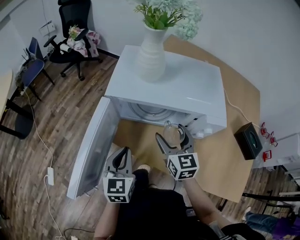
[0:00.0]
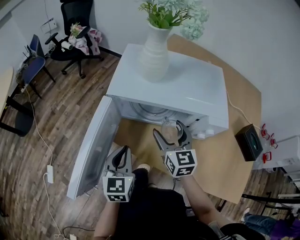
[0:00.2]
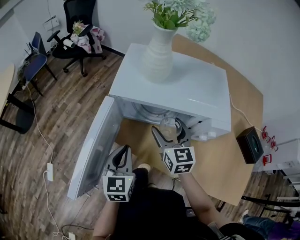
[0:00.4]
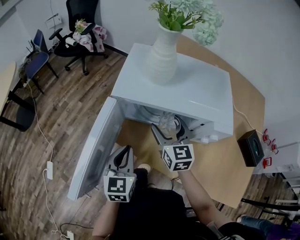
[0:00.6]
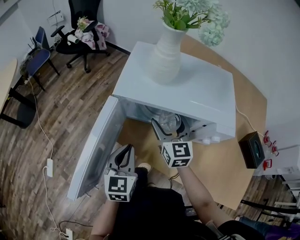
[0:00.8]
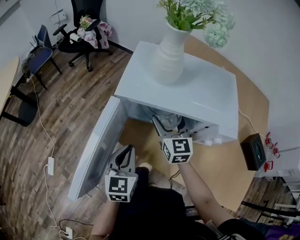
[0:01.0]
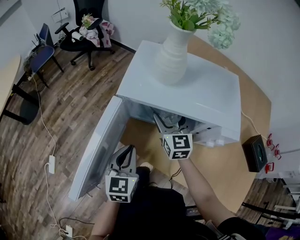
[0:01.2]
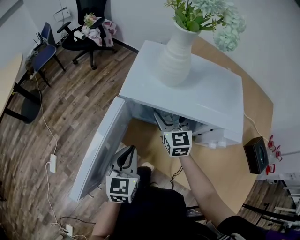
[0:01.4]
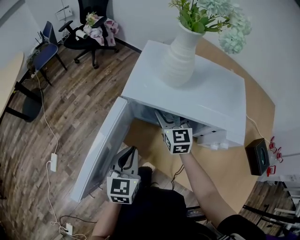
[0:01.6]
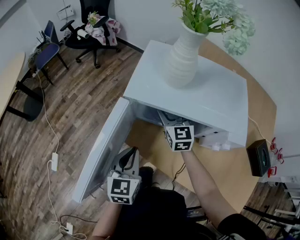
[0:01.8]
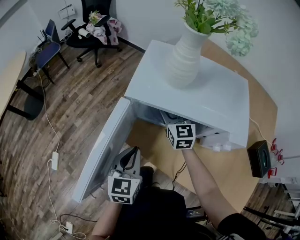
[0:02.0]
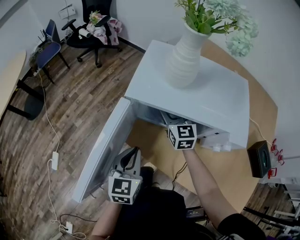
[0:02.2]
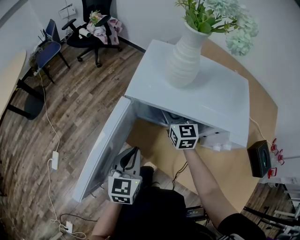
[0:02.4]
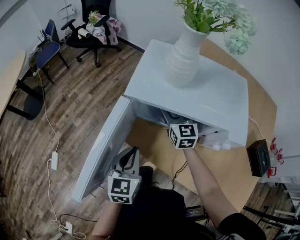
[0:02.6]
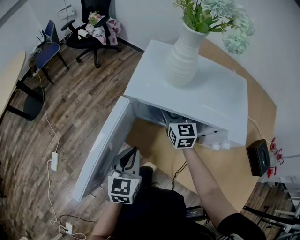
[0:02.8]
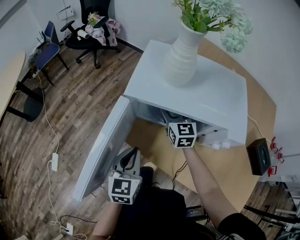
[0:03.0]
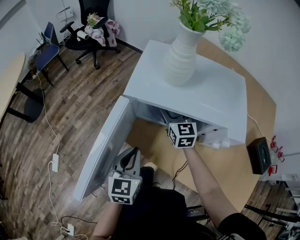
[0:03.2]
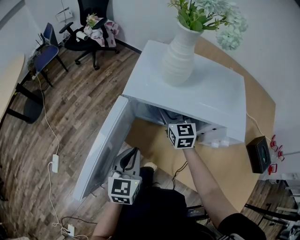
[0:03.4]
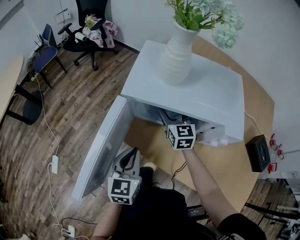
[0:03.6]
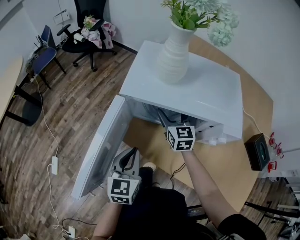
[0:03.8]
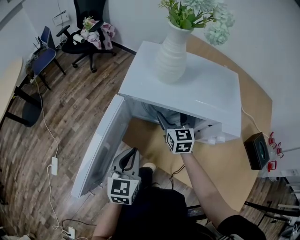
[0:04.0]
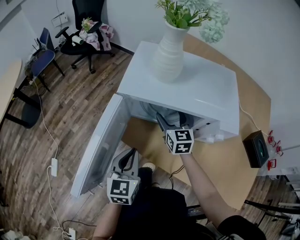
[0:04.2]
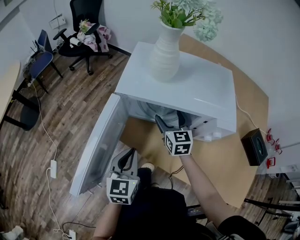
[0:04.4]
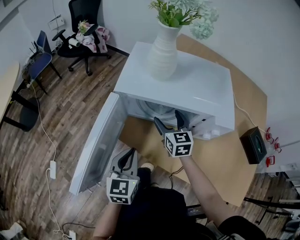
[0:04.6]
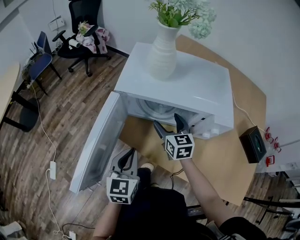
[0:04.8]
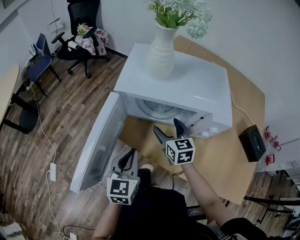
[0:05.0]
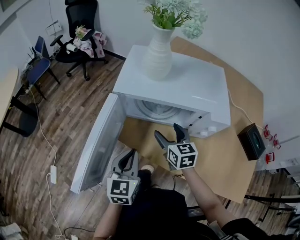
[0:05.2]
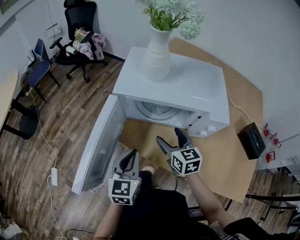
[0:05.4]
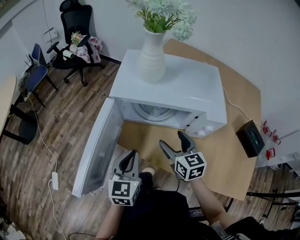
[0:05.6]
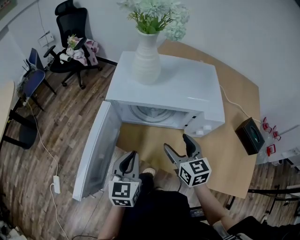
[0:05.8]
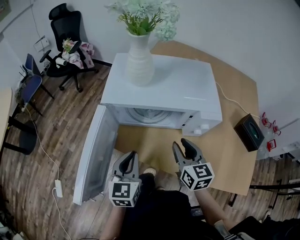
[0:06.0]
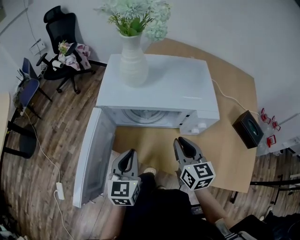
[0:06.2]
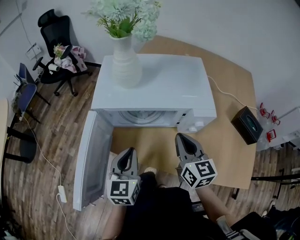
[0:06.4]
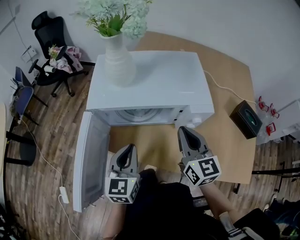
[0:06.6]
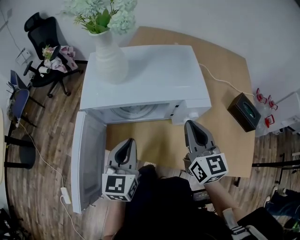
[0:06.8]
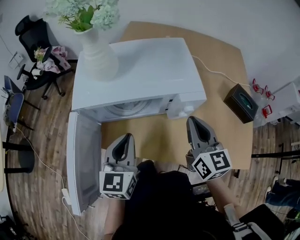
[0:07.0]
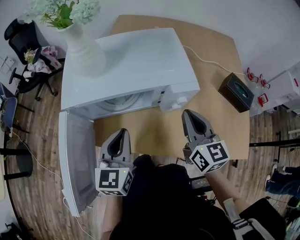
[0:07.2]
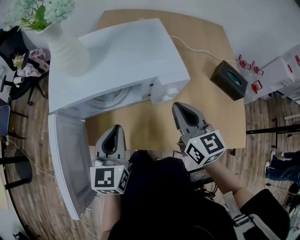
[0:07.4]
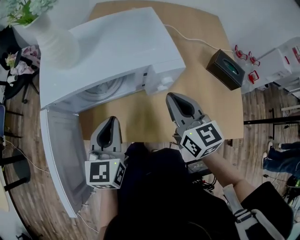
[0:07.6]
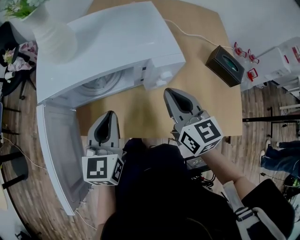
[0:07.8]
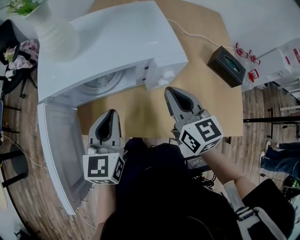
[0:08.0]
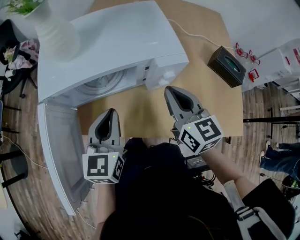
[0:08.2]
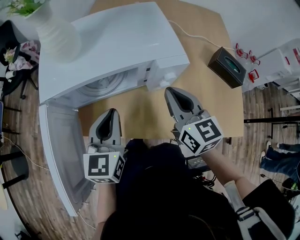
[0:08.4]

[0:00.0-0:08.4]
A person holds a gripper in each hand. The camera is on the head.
0:00.0 to 0:01.4: The right gripper goes roughly 15 cm forward and to the left.
0:01.4 to 0:02.8: The grippers stay close to where they were, moving slightly.
0:02.8 to 0:04.2: The right gripper heads backward, covering some 5 cm.
0:04.2 to 0:05.6: The right gripper is displaced backward by approximately 15 cm.
0:05.6 to 0:07.0: The right gripper moves to the right and upward, approximately 15 cm, turns by roughly 30 degrees, and closes its fingers, while the left gripper is displaced to the right and forward by roughly 10 cm.
0:07.0 to 0:08.4: There are only small adjustments of the grippers.

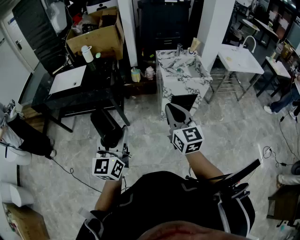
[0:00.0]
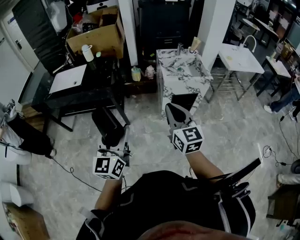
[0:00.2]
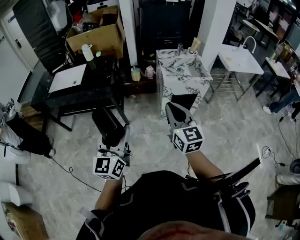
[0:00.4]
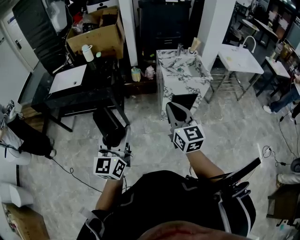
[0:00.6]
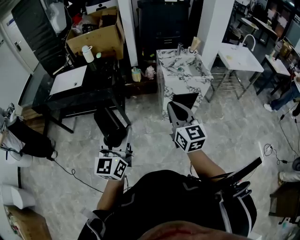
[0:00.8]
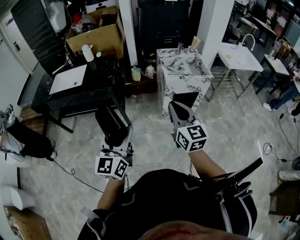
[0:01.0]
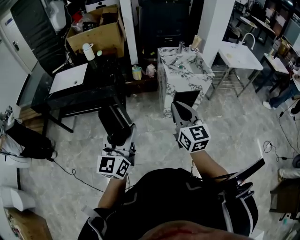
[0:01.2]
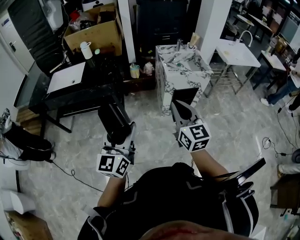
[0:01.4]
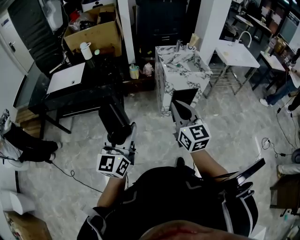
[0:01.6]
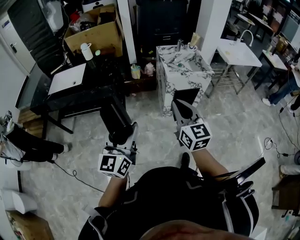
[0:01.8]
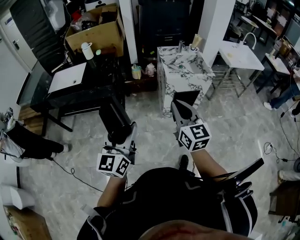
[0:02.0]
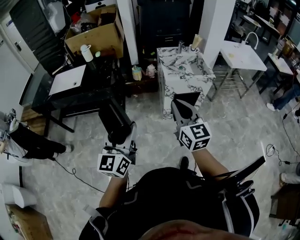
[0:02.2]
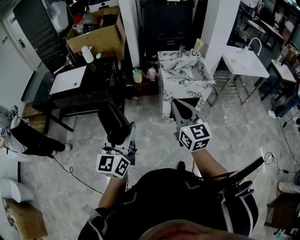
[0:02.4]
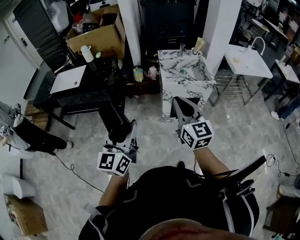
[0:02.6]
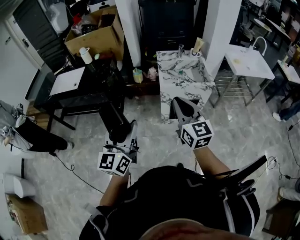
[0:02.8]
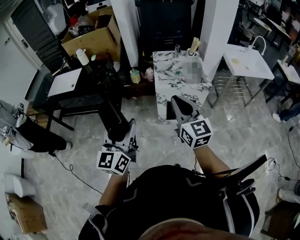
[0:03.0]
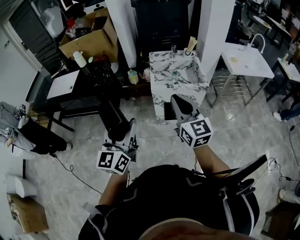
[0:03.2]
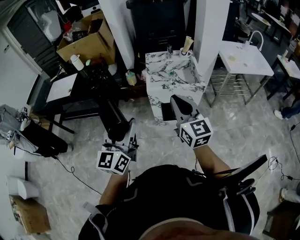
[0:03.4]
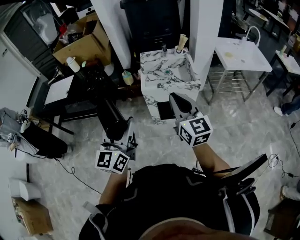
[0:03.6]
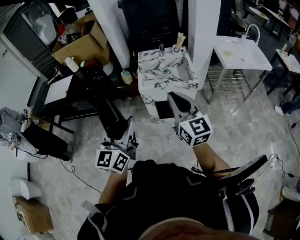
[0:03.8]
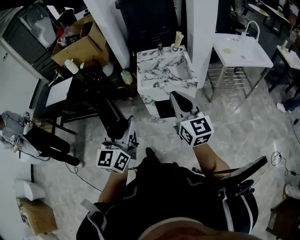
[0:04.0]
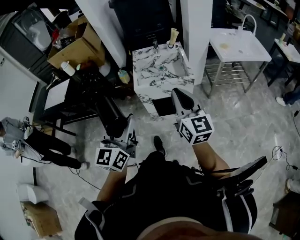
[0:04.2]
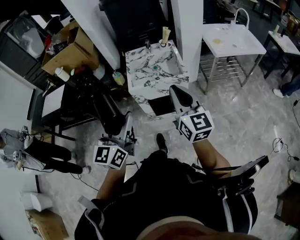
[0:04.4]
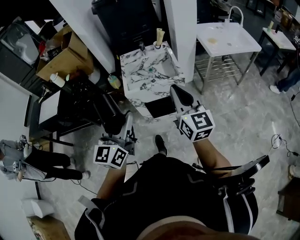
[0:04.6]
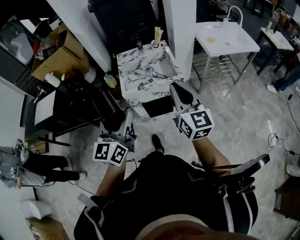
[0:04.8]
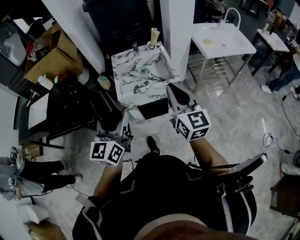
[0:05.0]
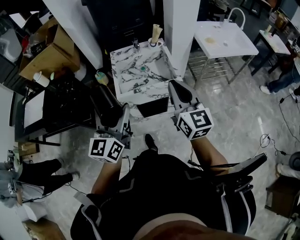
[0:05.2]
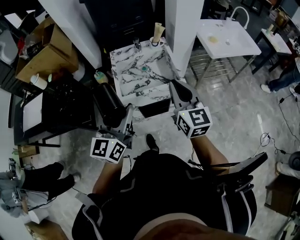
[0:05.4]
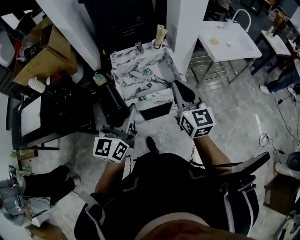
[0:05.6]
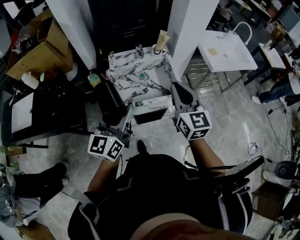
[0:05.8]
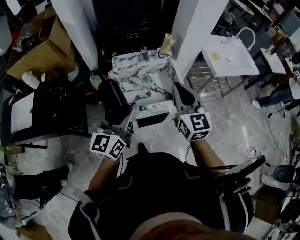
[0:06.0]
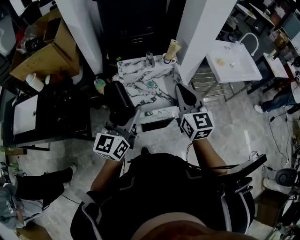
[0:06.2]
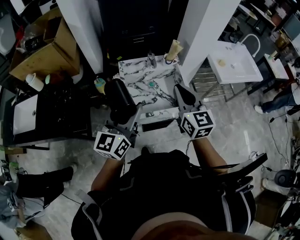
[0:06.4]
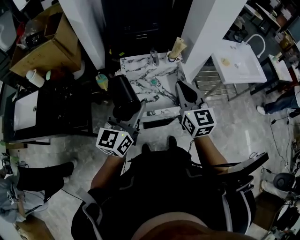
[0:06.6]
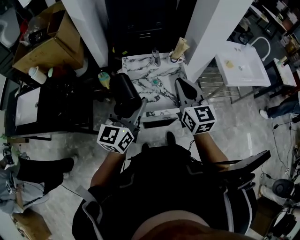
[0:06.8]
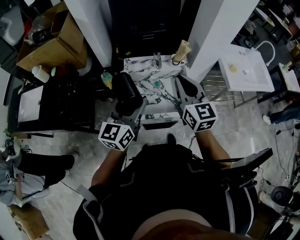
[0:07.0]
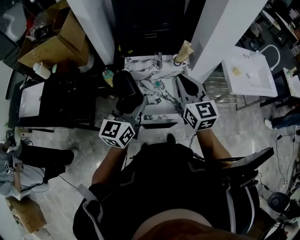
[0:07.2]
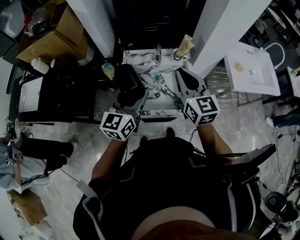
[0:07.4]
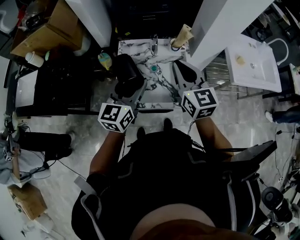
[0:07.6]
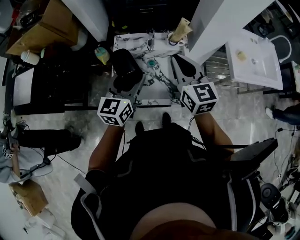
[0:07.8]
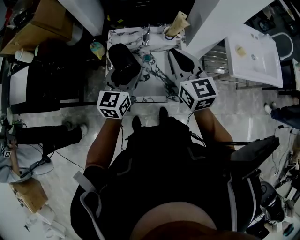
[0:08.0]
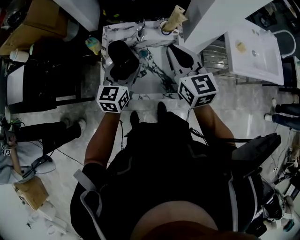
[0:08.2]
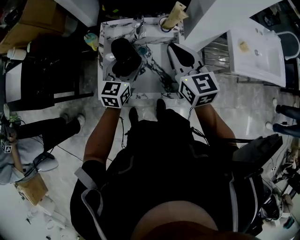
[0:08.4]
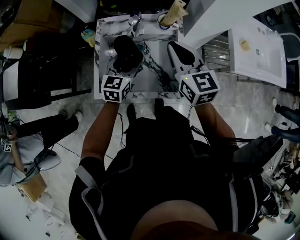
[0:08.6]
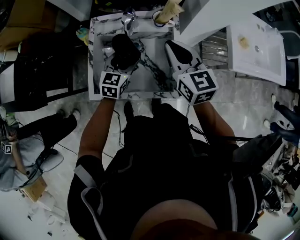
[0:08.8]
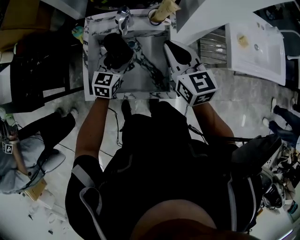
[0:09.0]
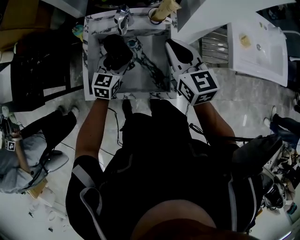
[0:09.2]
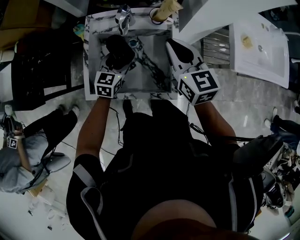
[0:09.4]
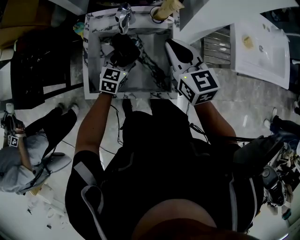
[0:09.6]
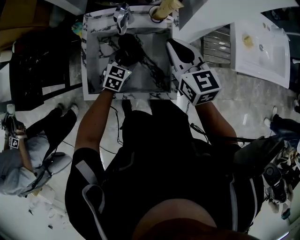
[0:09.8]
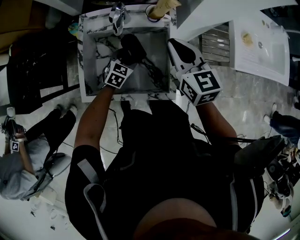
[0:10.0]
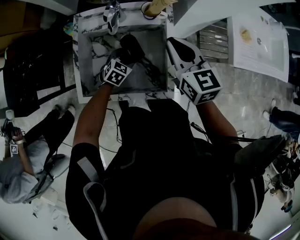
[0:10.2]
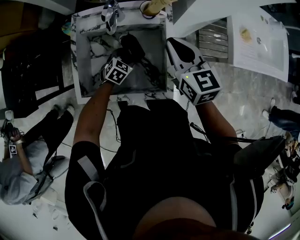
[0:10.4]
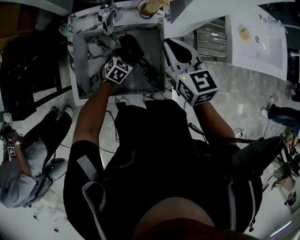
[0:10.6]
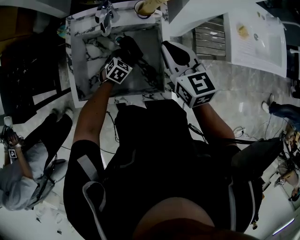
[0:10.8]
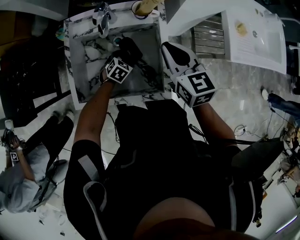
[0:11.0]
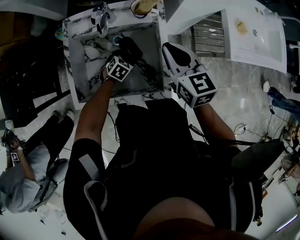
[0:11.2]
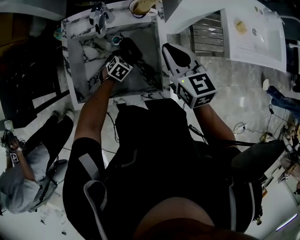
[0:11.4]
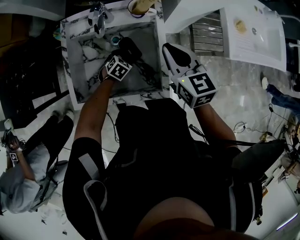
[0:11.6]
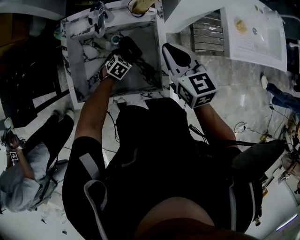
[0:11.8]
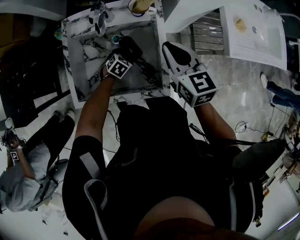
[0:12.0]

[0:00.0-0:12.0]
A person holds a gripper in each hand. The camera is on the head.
0:00.0 to 0:01.6: The grippers make only small movements.
0:01.6 to 0:03.0: The two grippers go some 20 cm to the right and forward.
0:03.0 to 0:04.4: The grippers both shift to the right by about 20 cm.
0:04.4 to 0:06.0: Both grippers travel together forward, roughly 25 cm.
0:06.0 to 0:07.6: The right gripper is displaced forward by some 15 cm. The left gripper travels forward and to the right by about 15 cm.
0:07.6 to 0:09.0: The left gripper travels downward and forward by about 25 cm, and rotates about 20 degrees. The right gripper goes some 15 cm downward, to the right and forward.
0:09.0 to 0:10.4: The left gripper heads downward, covering about 15 cm, and swivels approximately 30 degrees. The right gripper shifts about 5 cm downward.
0:10.4 to 0:12.0: The left gripper shifts some 5 cm downward.

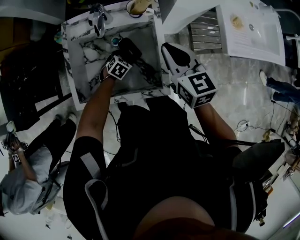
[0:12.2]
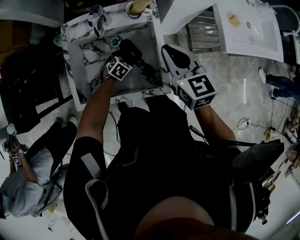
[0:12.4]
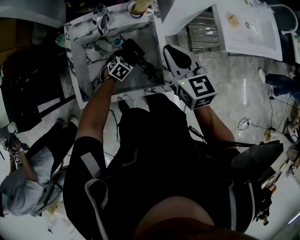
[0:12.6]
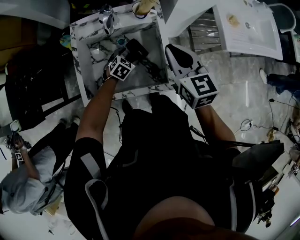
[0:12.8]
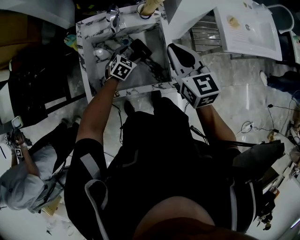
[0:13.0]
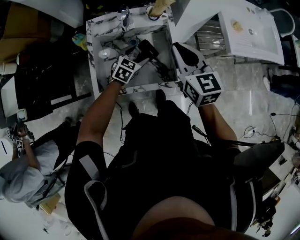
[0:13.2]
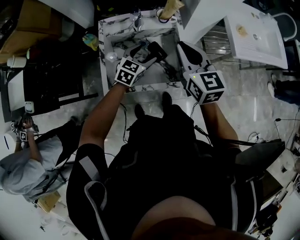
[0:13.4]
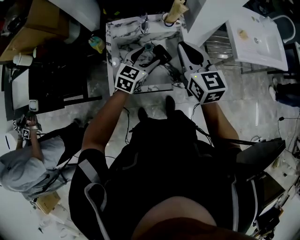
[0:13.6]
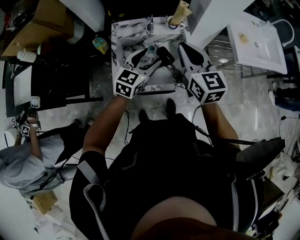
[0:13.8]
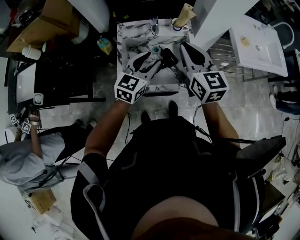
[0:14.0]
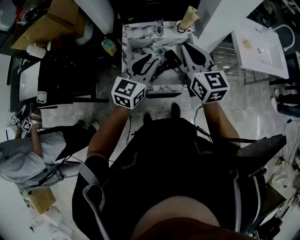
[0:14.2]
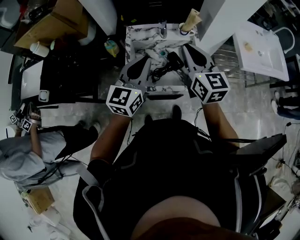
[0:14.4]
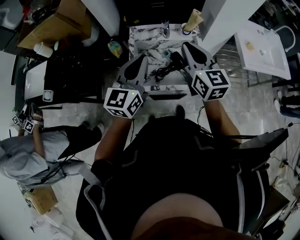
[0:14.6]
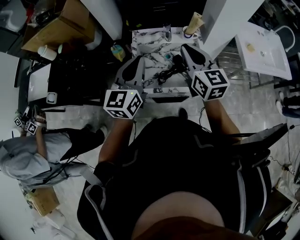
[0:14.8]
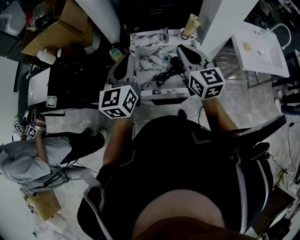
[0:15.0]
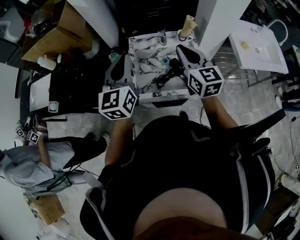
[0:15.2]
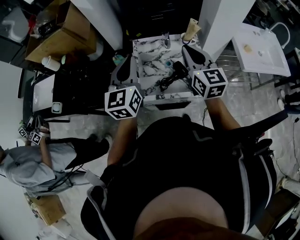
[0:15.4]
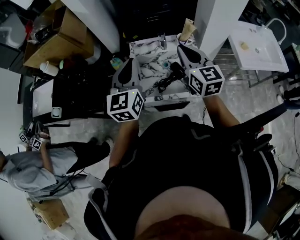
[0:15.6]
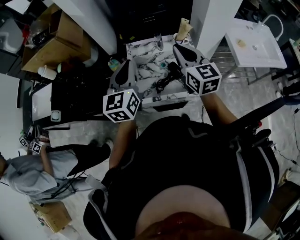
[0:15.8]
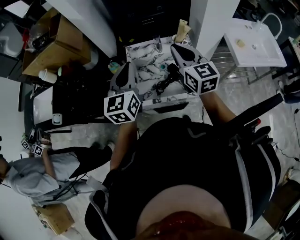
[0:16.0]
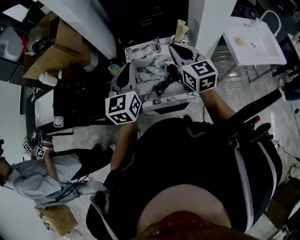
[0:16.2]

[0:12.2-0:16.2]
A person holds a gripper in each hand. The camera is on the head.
0:12.2 to 0:13.6: The right gripper heads upward, backward and to the left, covering about 15 cm. The left gripper goes some 30 cm upward, and points its fingers some 40 degrees further upward.
0:13.6 to 0:14.8: The left gripper goes approximately 25 cm upward, to the left and backward, changes its angle by roughly 30 degrees, and closes, while the right gripper travels to the left and upward by some 10 cm.
0:14.8 to 0:16.2: The grippers stay close to where they were, moving slightly.
